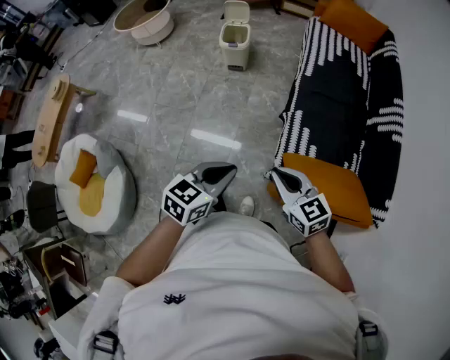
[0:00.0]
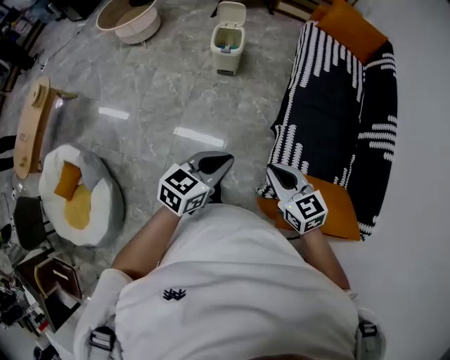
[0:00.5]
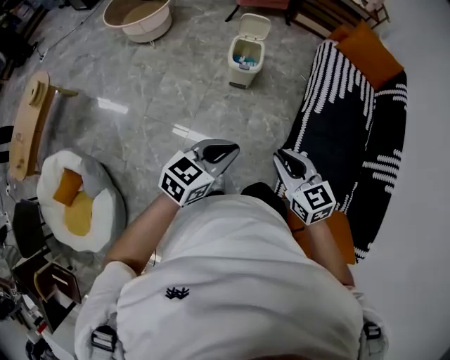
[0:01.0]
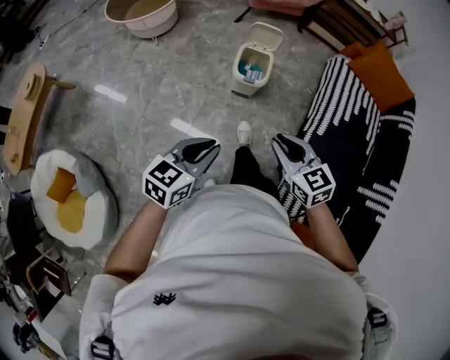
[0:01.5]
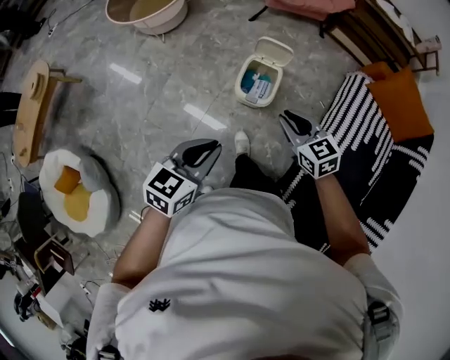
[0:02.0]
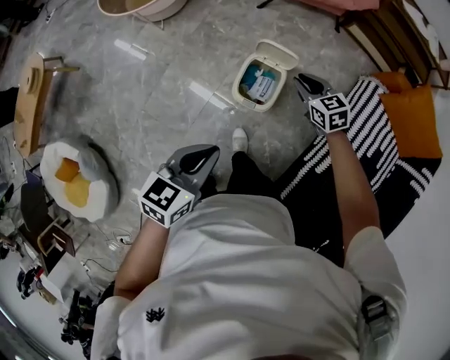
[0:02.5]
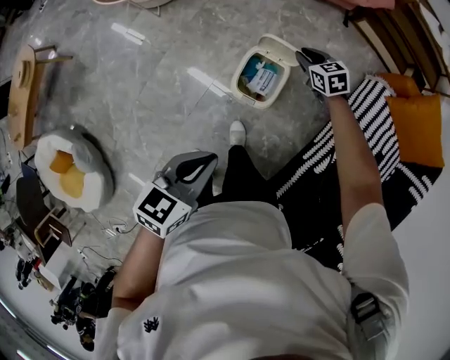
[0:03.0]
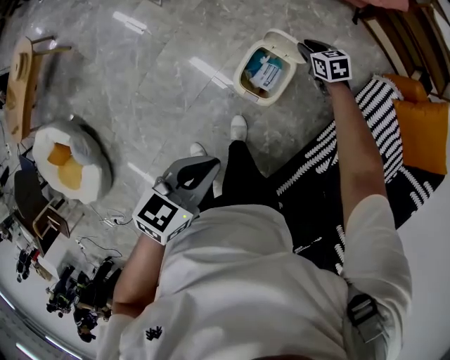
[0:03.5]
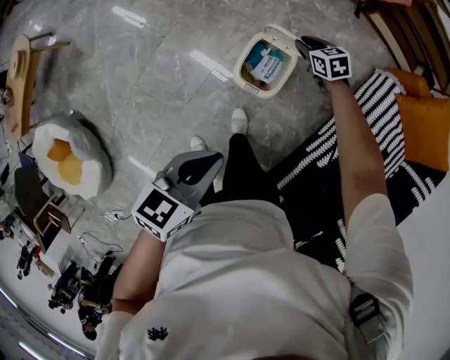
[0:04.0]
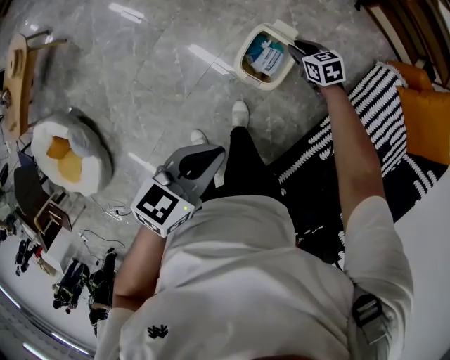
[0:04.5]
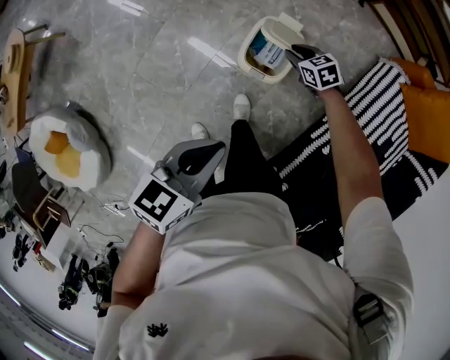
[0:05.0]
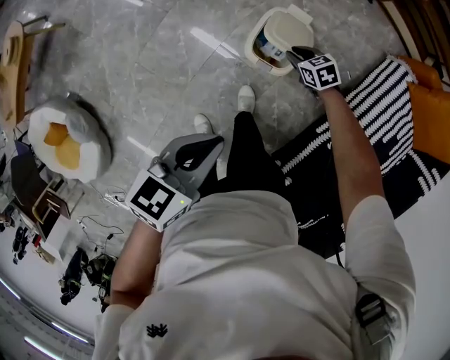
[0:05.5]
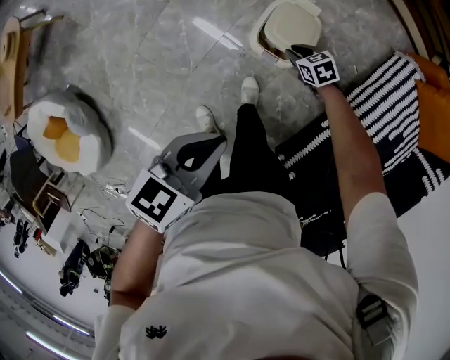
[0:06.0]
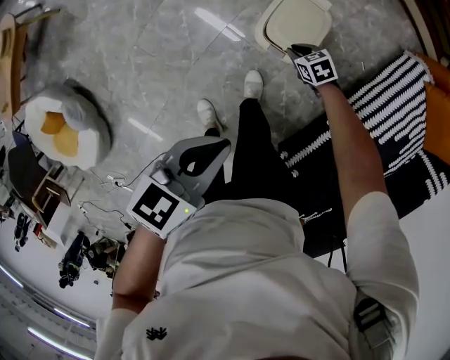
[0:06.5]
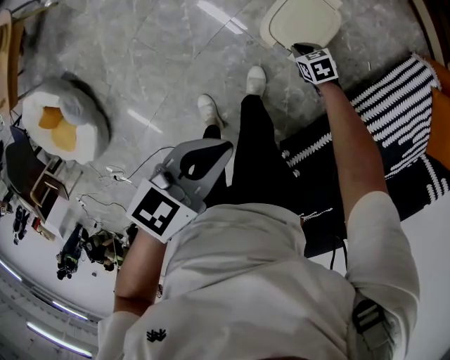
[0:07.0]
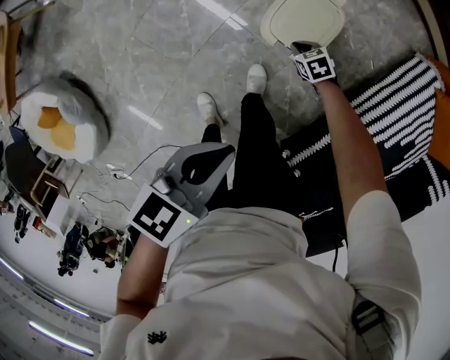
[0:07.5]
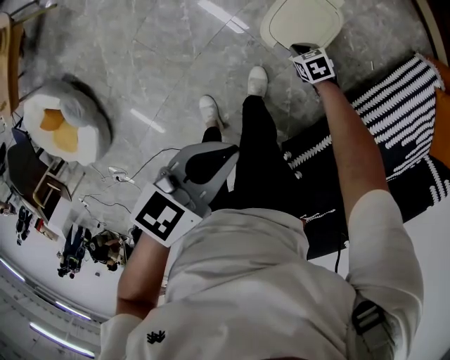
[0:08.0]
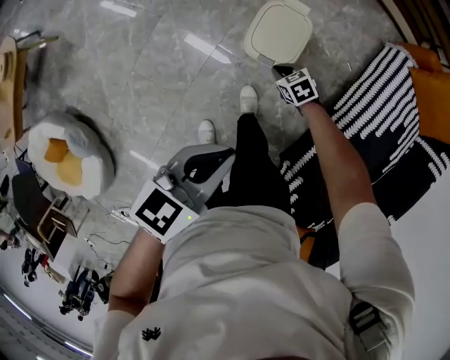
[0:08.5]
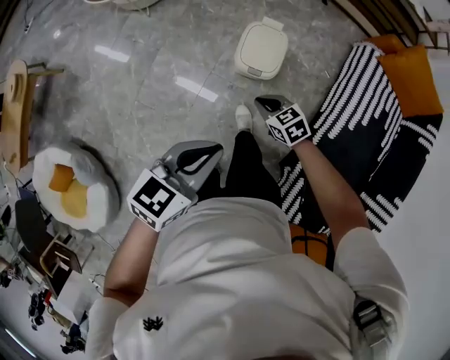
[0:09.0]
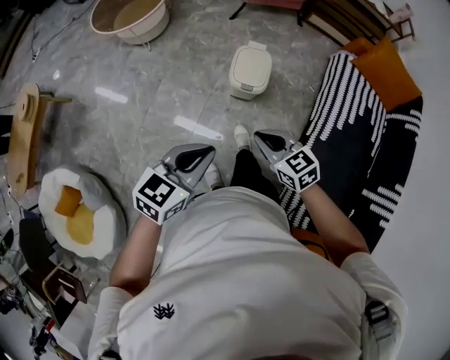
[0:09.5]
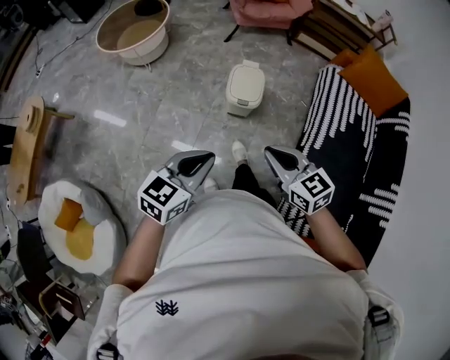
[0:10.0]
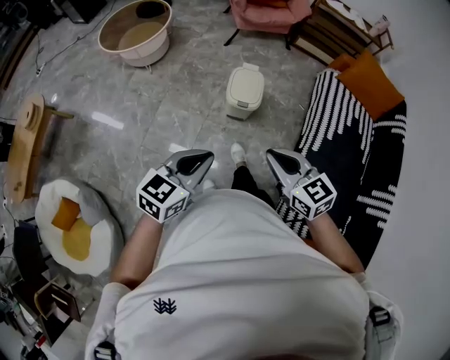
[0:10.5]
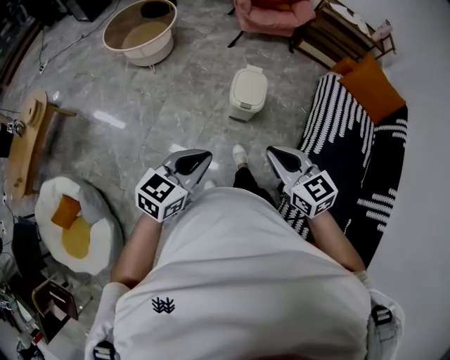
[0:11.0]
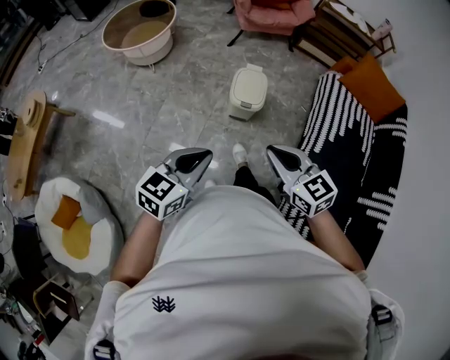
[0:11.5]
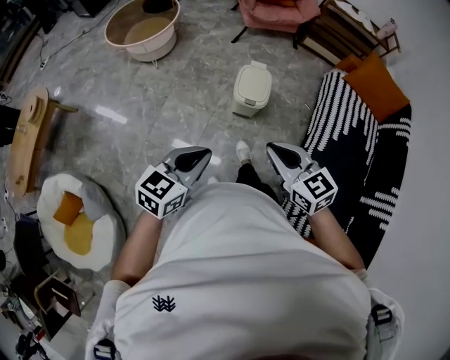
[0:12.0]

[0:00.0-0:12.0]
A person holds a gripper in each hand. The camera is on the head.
0:00.0 to 0:02.0: Both grippers are carried forward, some 70 cm.
0:02.0 to 0:04.0: The right gripper travels forward and downward by roughly 40 cm, while the left gripper travels forward, downward and to the right by about 15 cm.
0:04.0 to 0:06.0: The left gripper ends up some 5 cm from where it was; the right gripper heads backward, downward and to the left, covering about 20 cm.
0:06.0 to 0:08.0: The right gripper moves downward, some 10 cm. The left gripper shifts about 5 cm downward.
0:08.0 to 0:10.0: The right gripper goes roughly 60 cm upward, and tilts its fingers approximately 40 degrees upward, while the left gripper shifts by about 30 cm, and turns by approximately 40 degrees.
0:10.0 to 0:12.0: The right gripper changes place by some 5 cm. The left gripper shifts by about 5 cm.

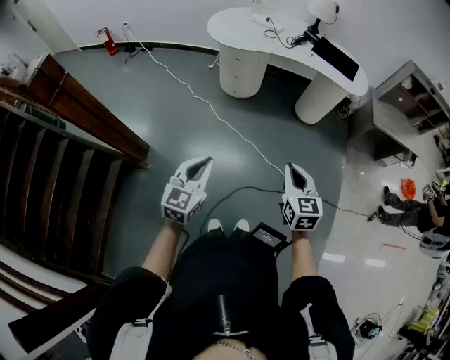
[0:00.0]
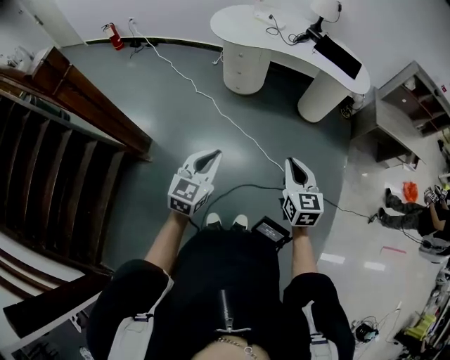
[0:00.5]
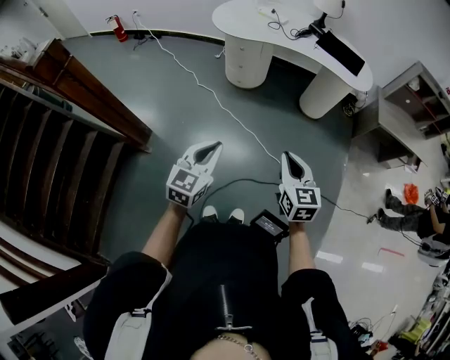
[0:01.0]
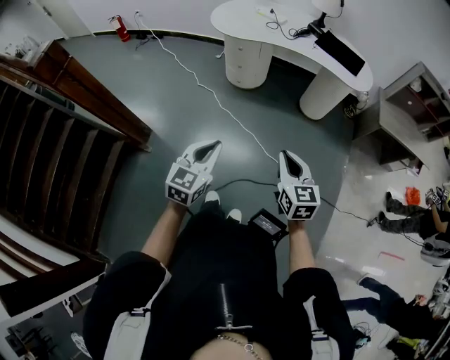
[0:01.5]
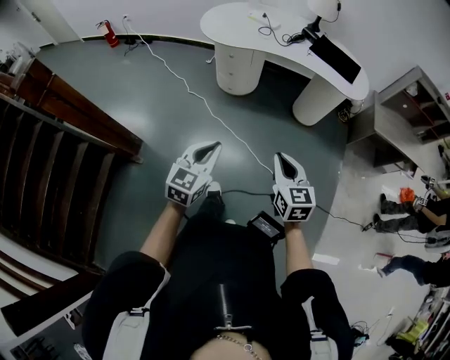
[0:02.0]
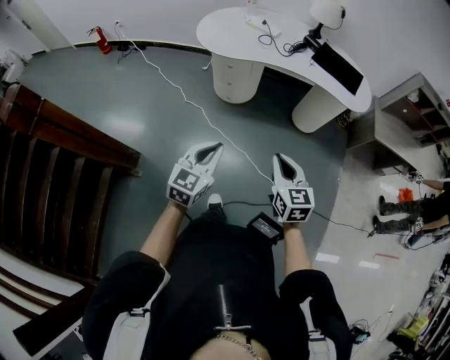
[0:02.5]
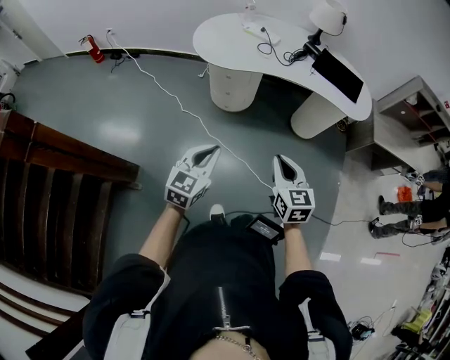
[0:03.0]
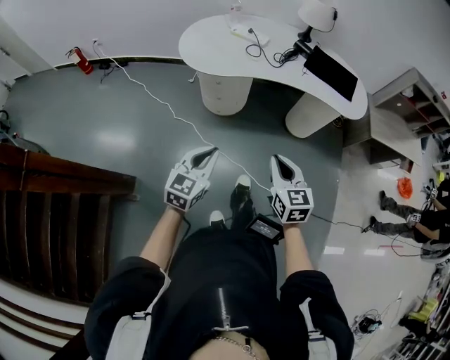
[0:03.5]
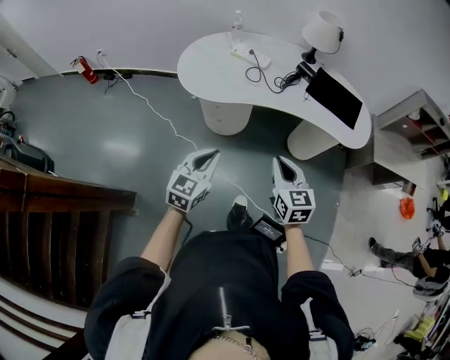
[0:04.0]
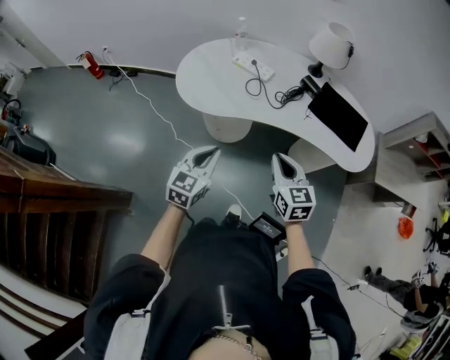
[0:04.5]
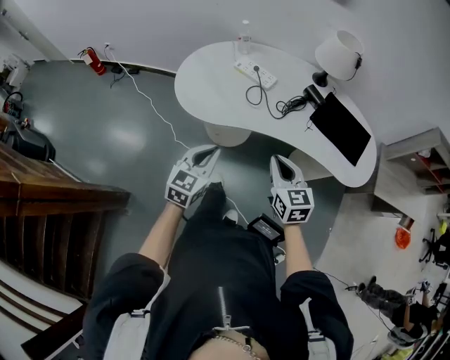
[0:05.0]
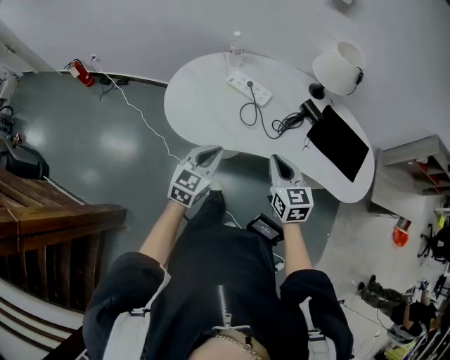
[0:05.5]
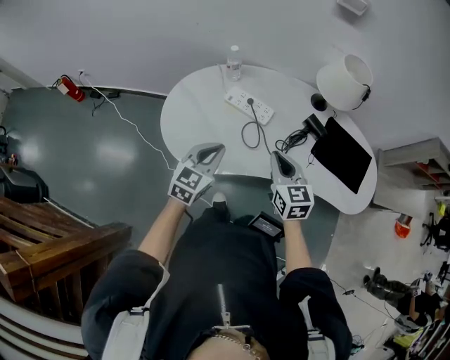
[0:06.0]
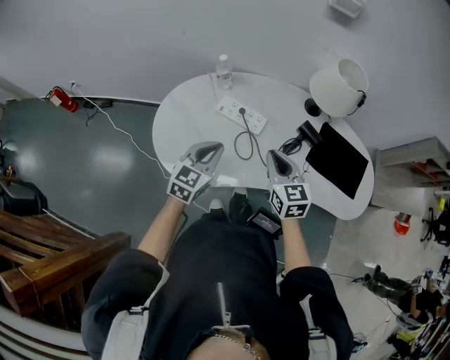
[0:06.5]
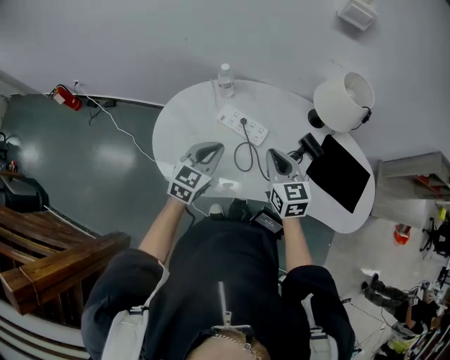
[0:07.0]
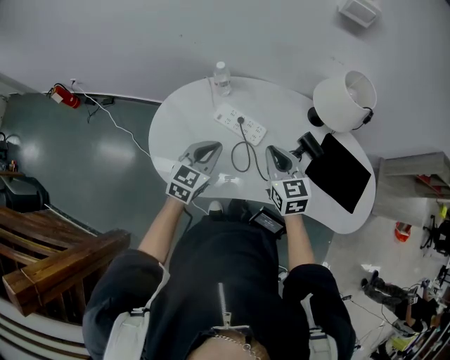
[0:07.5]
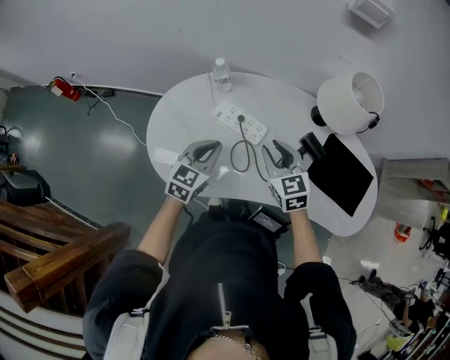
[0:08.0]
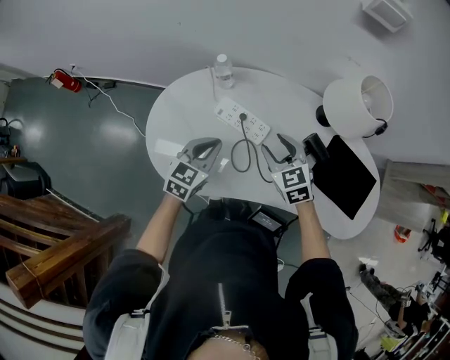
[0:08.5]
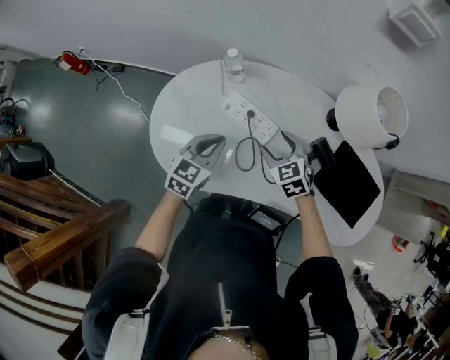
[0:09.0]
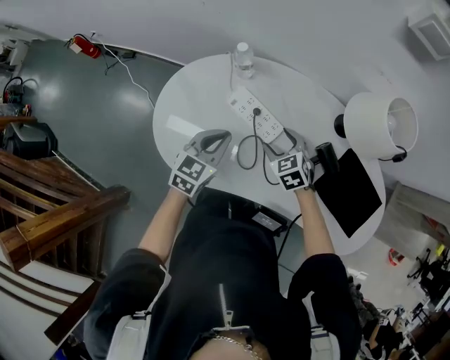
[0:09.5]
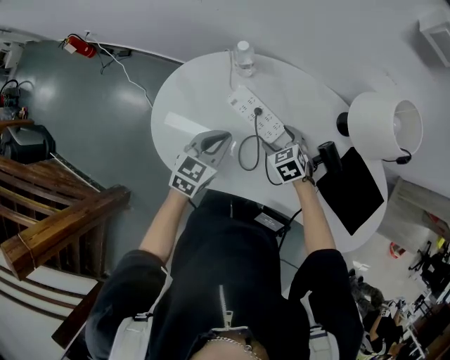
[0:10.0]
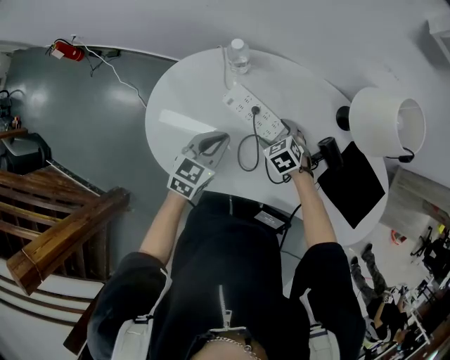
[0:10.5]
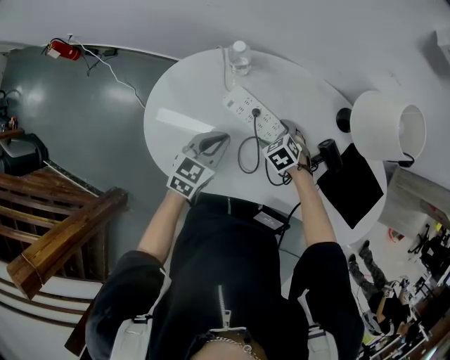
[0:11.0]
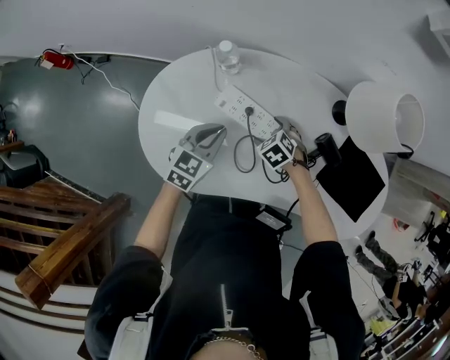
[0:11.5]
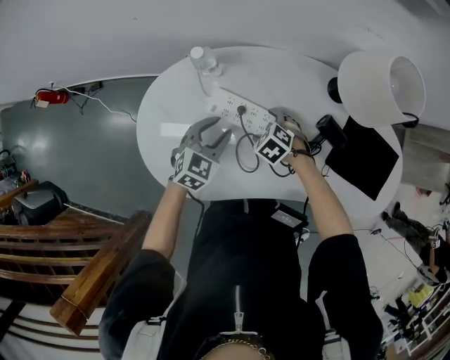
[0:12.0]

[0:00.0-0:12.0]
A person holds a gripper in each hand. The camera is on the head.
0:00.0 to 0:02.0: The left gripper travels to the right and forward by approximately 15 cm, while the right gripper heads forward, covering about 5 cm.
0:02.0 to 0:04.0: Both grippers move forward, roughly 35 cm.
0:04.0 to 0:06.0: The two grippers go some 35 cm forward.
0:06.0 to 0:08.0: The grippers both shift forward by roughly 15 cm.
0:08.0 to 0:10.0: The right gripper is displaced downward by roughly 15 cm, rotates approximately 30 degrees, and opens its fingers.
0:10.0 to 0:12.0: The left gripper moves forward and downward, roughly 10 cm, swivels approximately 30 degrees, and opens up. The right gripper is displaced downward by about 5 cm.

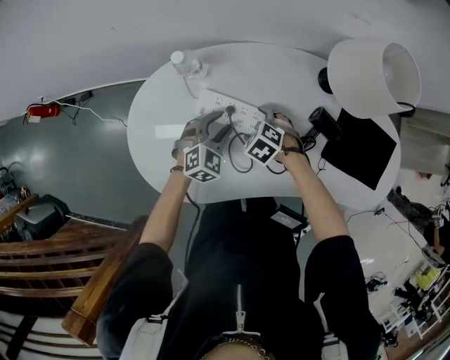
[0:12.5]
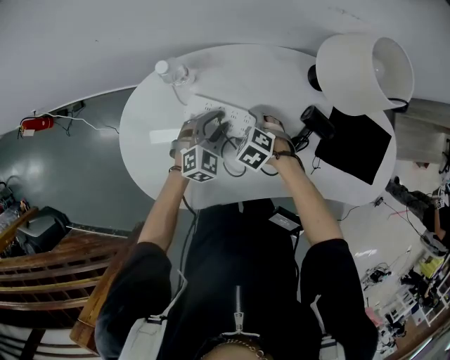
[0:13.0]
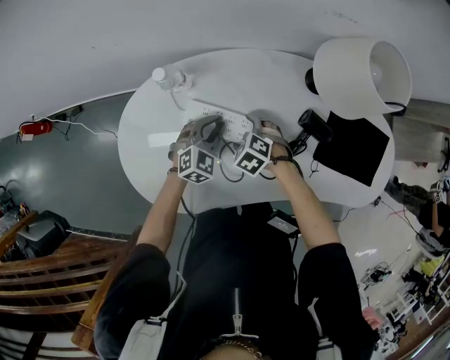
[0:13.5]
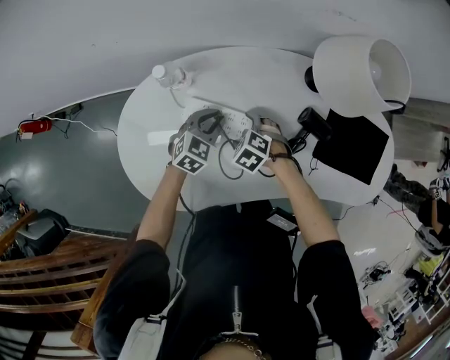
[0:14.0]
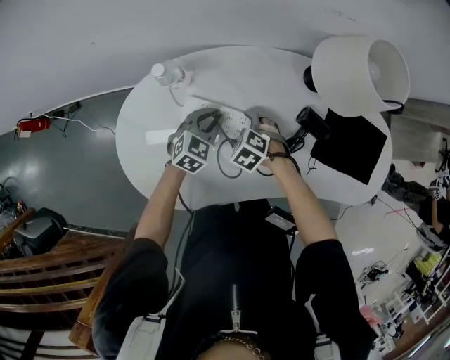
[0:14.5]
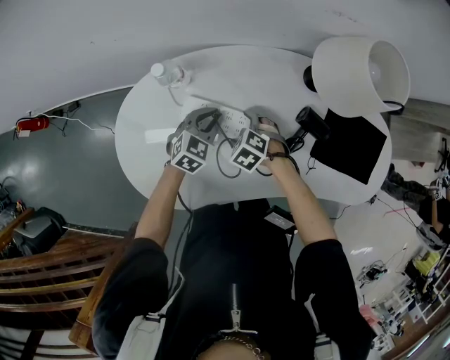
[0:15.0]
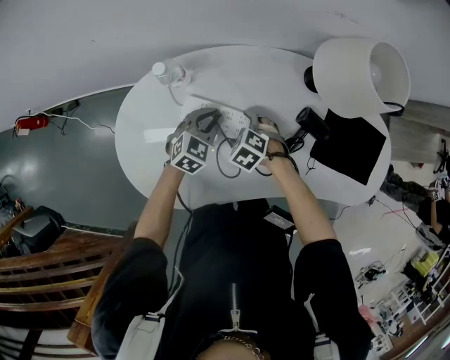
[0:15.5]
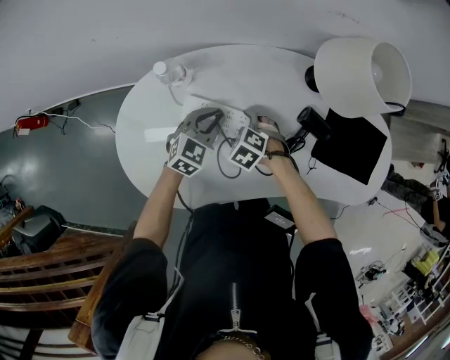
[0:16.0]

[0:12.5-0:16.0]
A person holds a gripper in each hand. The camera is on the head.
0:12.5 to 0:14.5: The left gripper closes up.
0:14.5 to 0:16.0: There are only small adjustments of the grippers.
